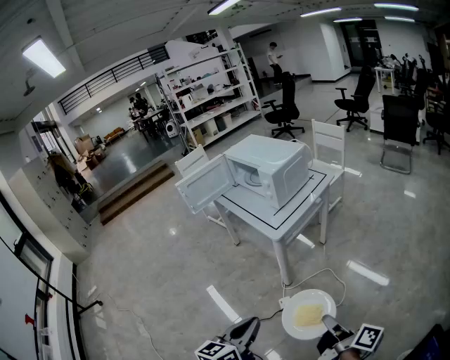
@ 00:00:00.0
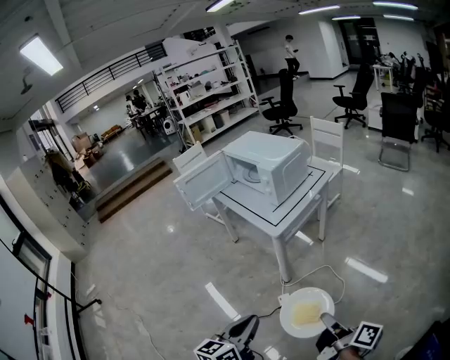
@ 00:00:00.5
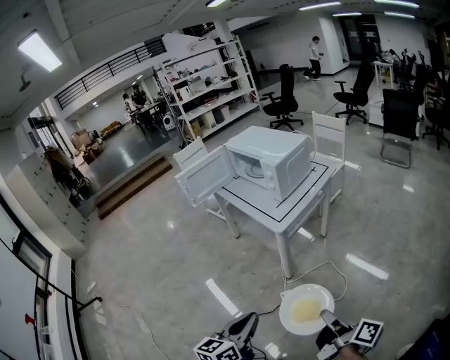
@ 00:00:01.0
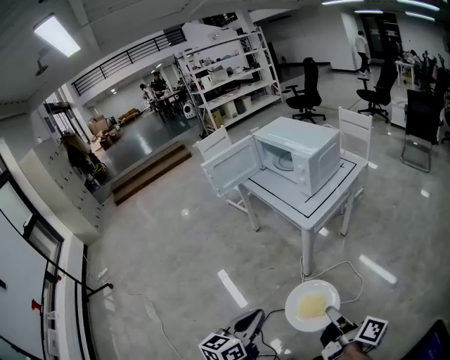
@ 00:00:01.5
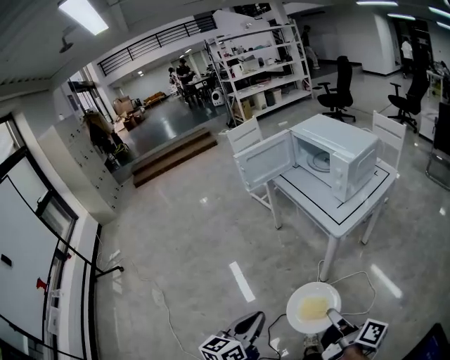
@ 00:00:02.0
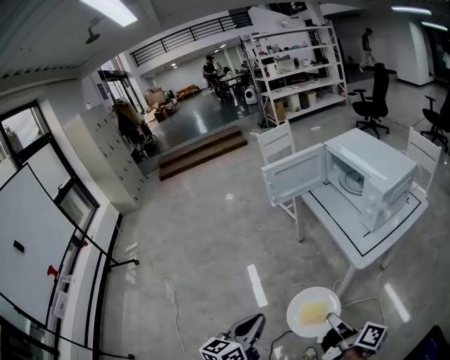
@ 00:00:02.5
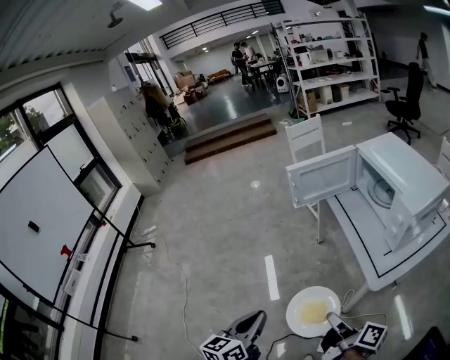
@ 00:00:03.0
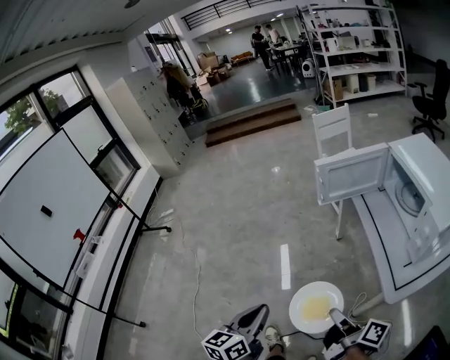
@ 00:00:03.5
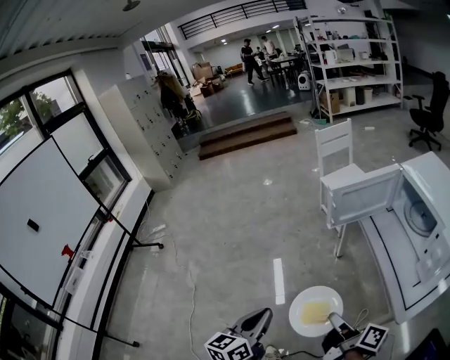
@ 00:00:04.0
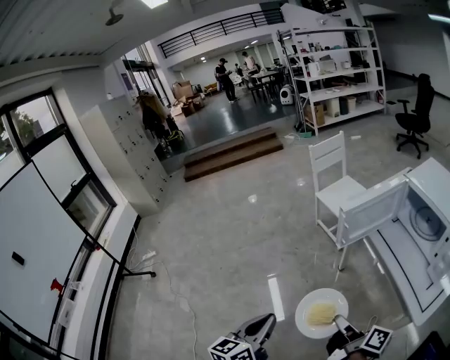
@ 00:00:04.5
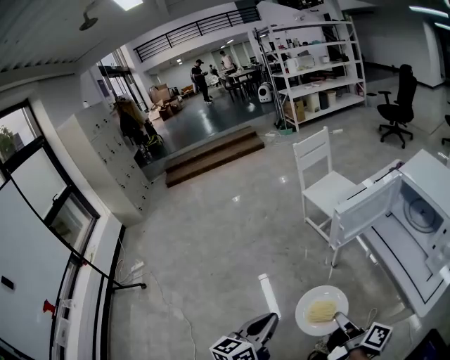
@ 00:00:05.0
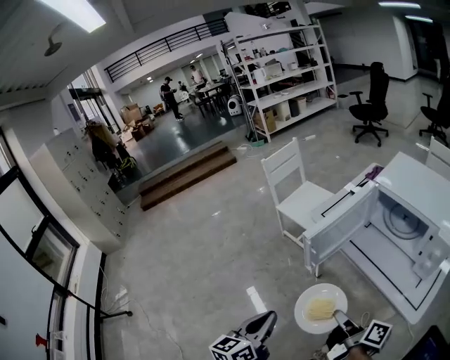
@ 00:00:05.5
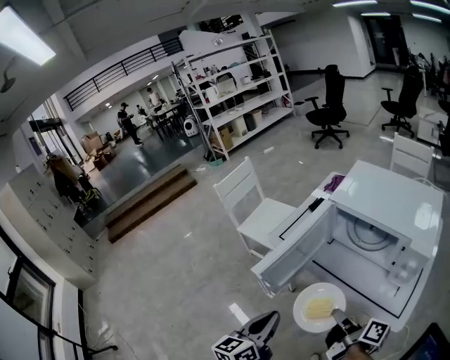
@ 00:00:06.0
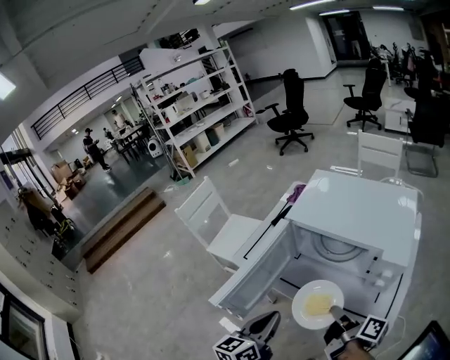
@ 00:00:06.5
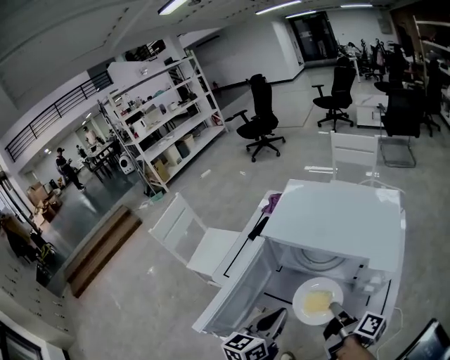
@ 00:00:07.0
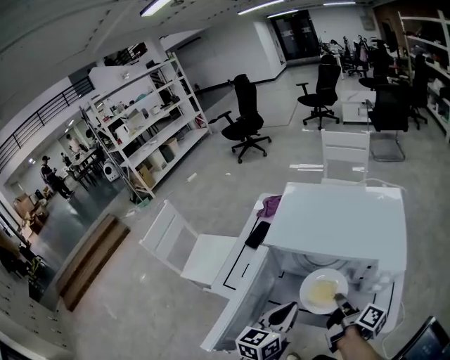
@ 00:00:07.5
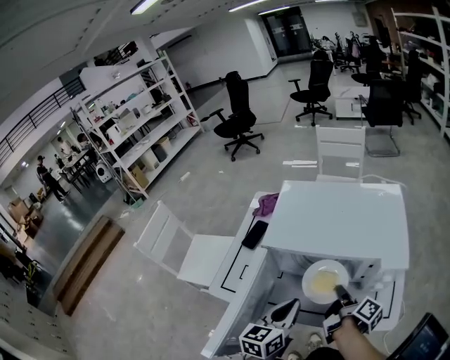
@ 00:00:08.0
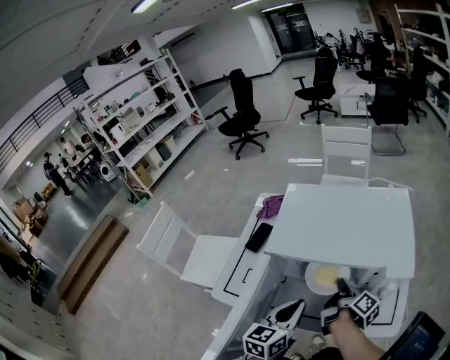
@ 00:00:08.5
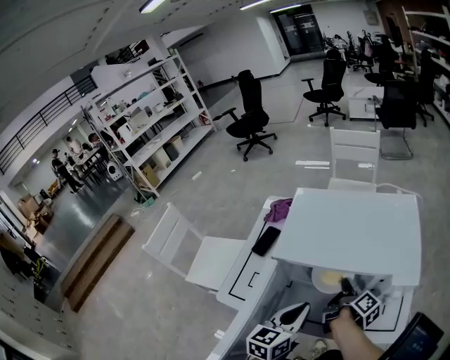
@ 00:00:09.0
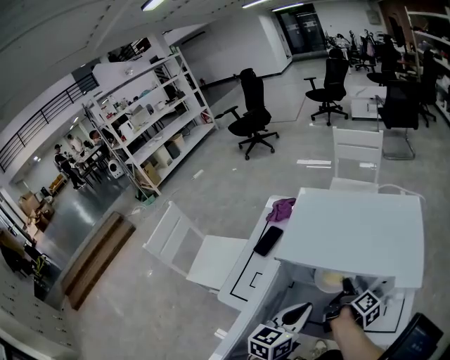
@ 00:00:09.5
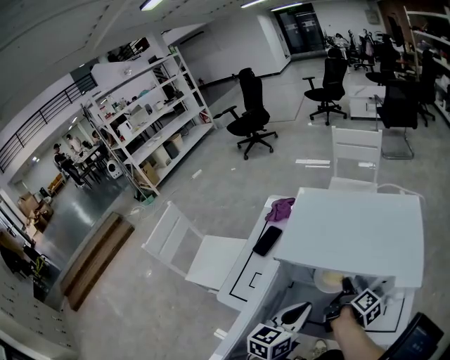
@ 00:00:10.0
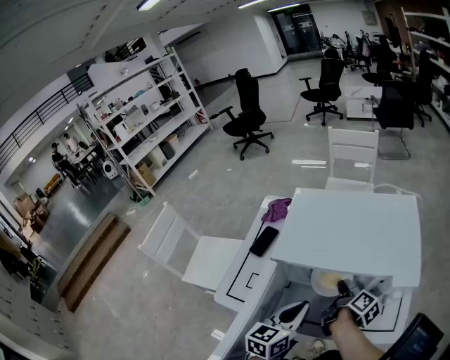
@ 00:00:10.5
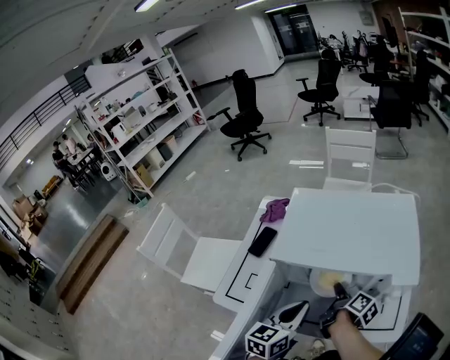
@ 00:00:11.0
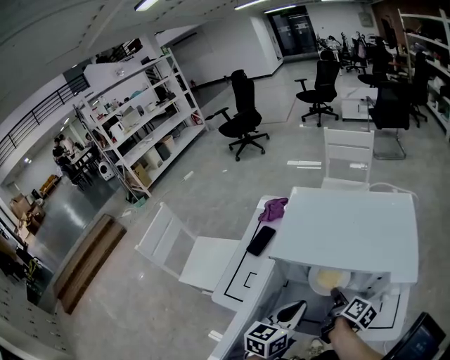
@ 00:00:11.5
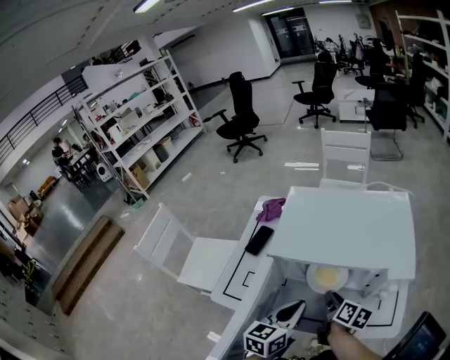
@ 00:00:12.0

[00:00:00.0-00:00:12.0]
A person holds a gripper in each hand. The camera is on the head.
00:00:00.0 to 00:00:02.0: The right gripper travels to the left and forward by about 20 cm; the left gripper is displaced to the left by about 20 cm.
00:00:02.0 to 00:00:04.0: The left gripper changes place by approximately 35 cm, and turns by approximately 20 degrees. The right gripper changes place by approximately 40 cm, and changes its angle by about 20 degrees.
00:00:04.0 to 00:00:06.0: The right gripper shifts by some 25 cm, and turns by some 40 degrees; the left gripper changes place by about 35 cm, and swivels some 40 degrees.
00:00:06.0 to 00:00:08.0: The right gripper shifts by roughly 25 cm, and rotates roughly 40 degrees. Meanwhile the left gripper shifts by some 30 cm, and rotates approximately 30 degrees.
00:00:08.0 to 00:00:10.0: The right gripper heads forward, covering about 10 cm.
00:00:10.0 to 00:00:12.0: The right gripper heads backward, covering some 5 cm, and changes its angle by some 30 degrees.

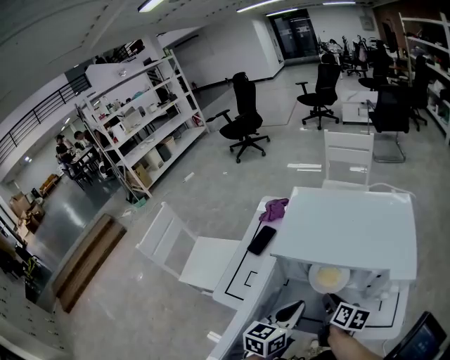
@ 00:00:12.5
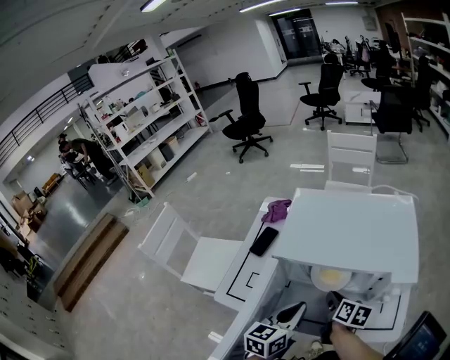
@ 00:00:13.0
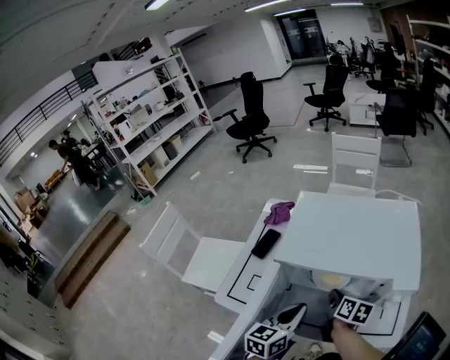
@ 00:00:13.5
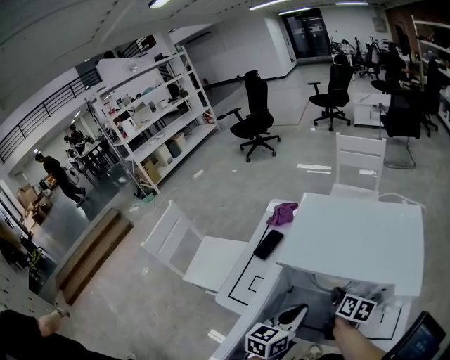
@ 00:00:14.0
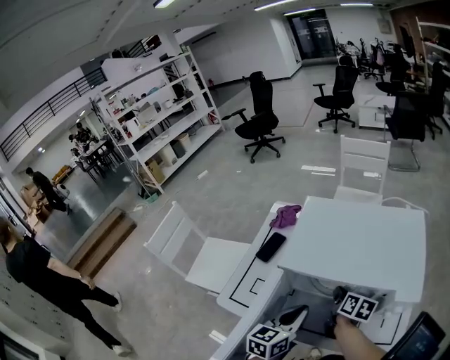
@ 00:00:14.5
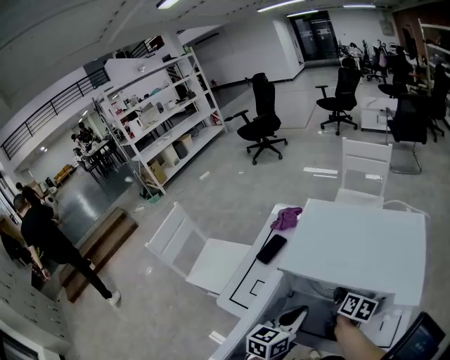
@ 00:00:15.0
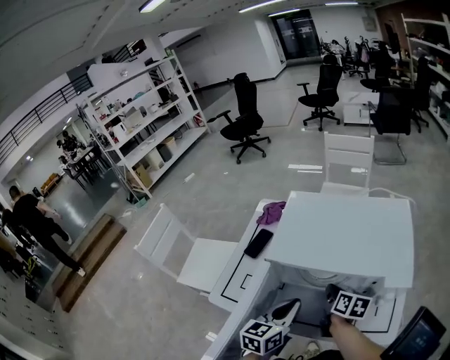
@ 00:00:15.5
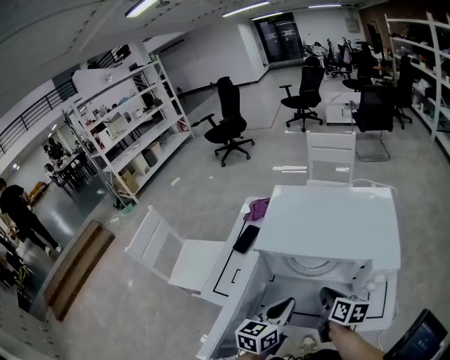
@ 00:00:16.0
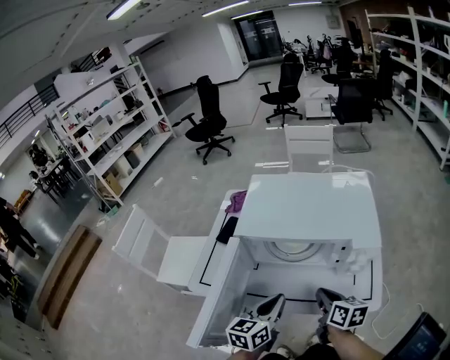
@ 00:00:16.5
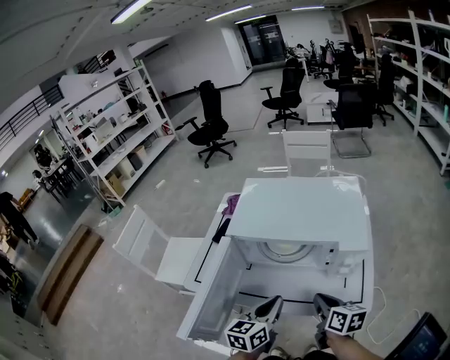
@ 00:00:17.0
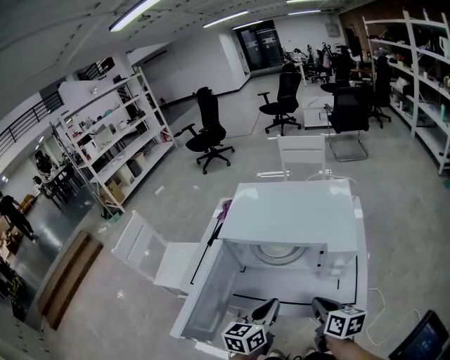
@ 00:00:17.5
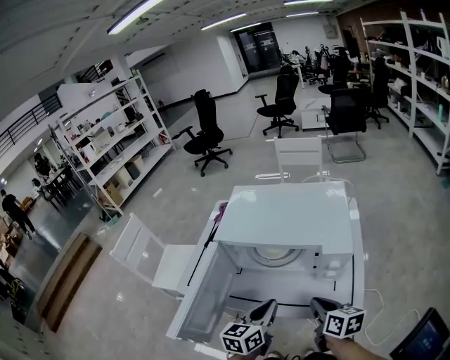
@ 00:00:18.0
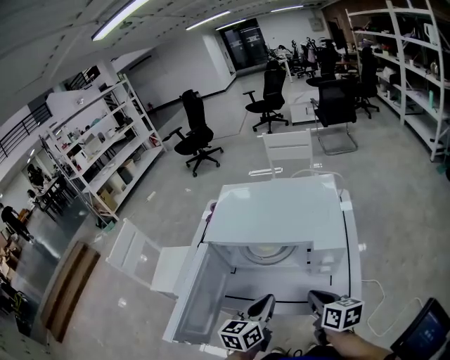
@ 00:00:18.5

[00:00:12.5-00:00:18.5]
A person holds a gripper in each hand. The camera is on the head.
00:00:12.5 to 00:00:14.5: The right gripper goes approximately 10 cm forward.
00:00:14.5 to 00:00:16.5: The left gripper shifts roughly 5 cm backward, while the right gripper goes about 15 cm backward.
00:00:16.5 to 00:00:18.5: Both grippers travel together to the right, some 5 cm.

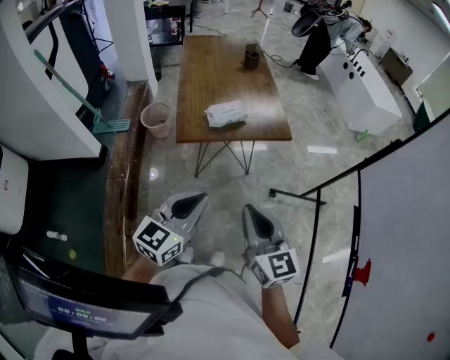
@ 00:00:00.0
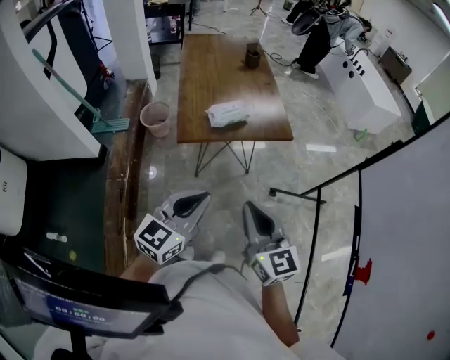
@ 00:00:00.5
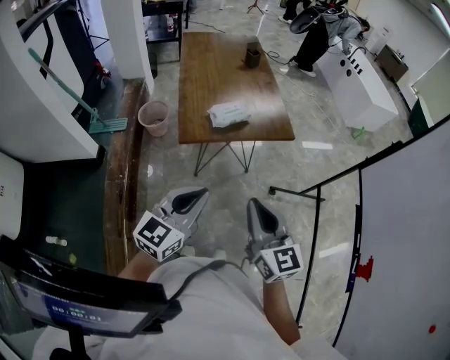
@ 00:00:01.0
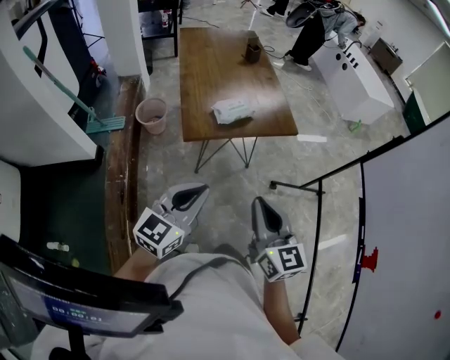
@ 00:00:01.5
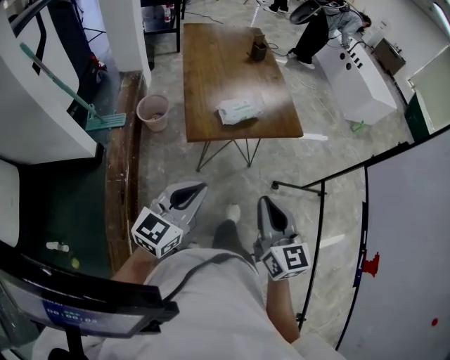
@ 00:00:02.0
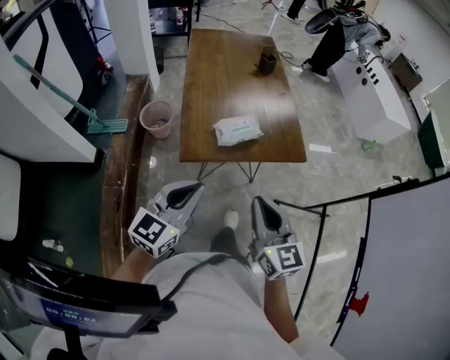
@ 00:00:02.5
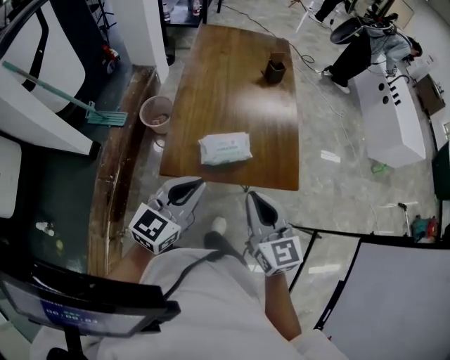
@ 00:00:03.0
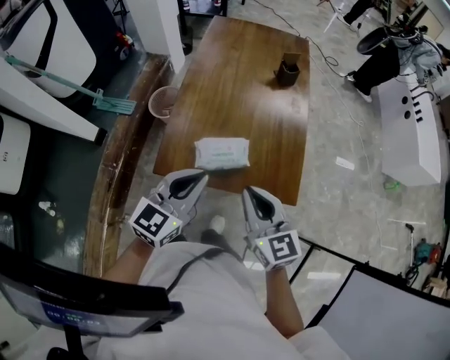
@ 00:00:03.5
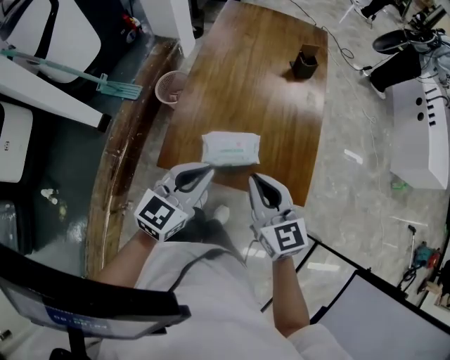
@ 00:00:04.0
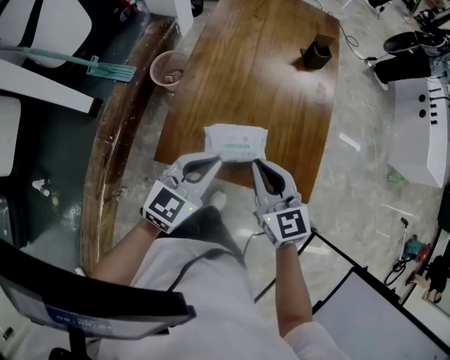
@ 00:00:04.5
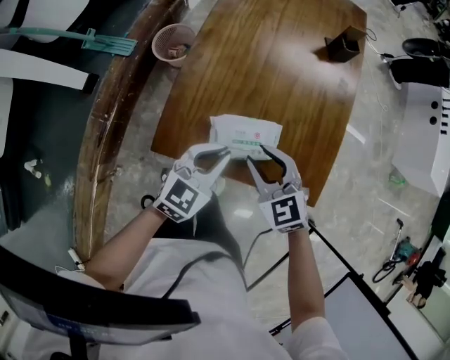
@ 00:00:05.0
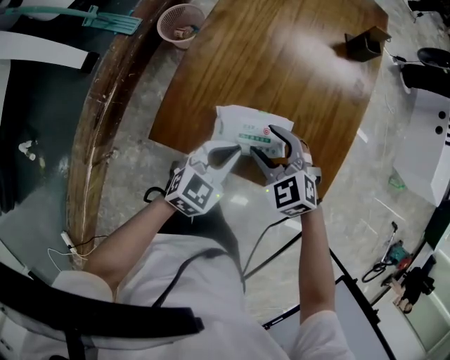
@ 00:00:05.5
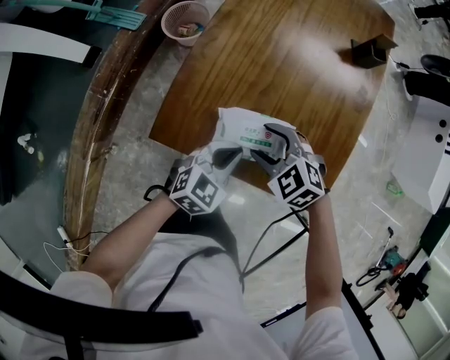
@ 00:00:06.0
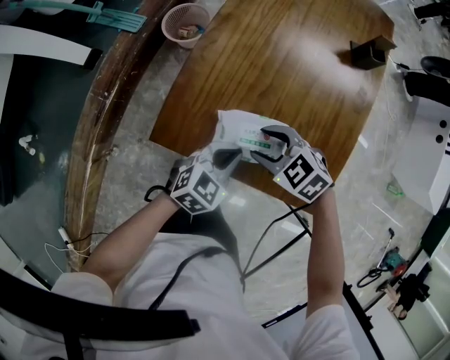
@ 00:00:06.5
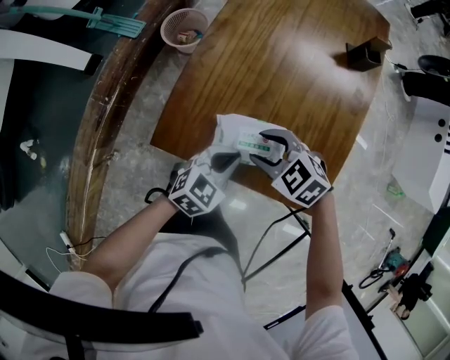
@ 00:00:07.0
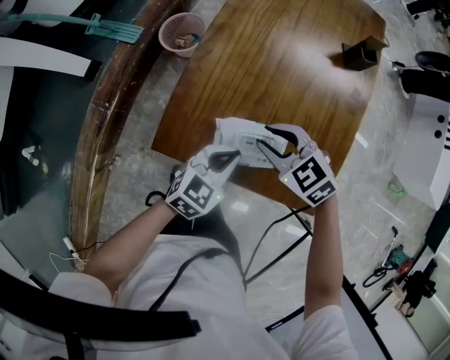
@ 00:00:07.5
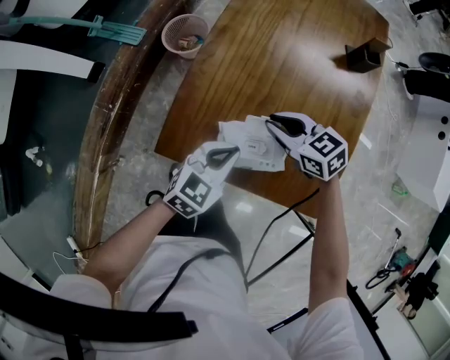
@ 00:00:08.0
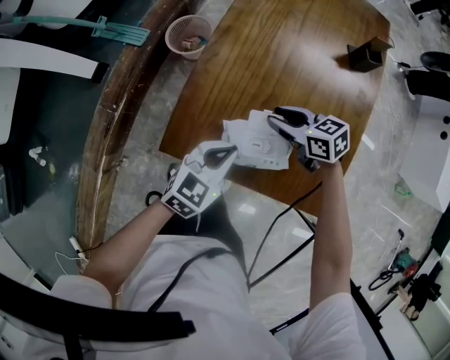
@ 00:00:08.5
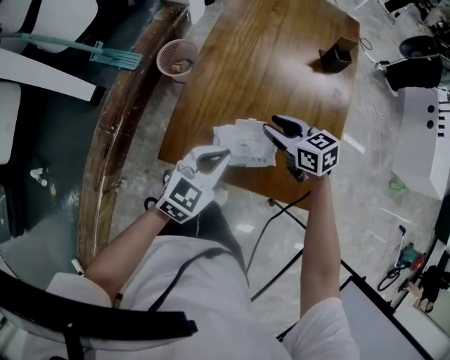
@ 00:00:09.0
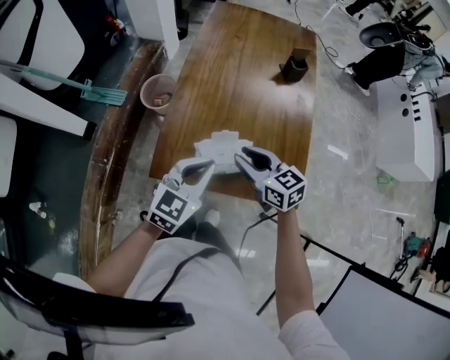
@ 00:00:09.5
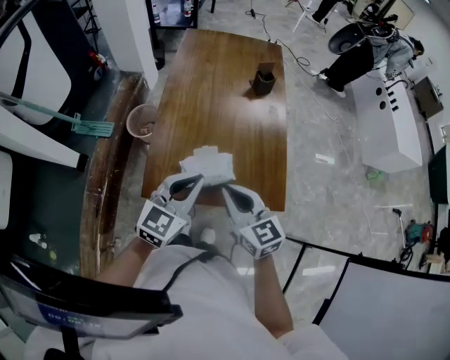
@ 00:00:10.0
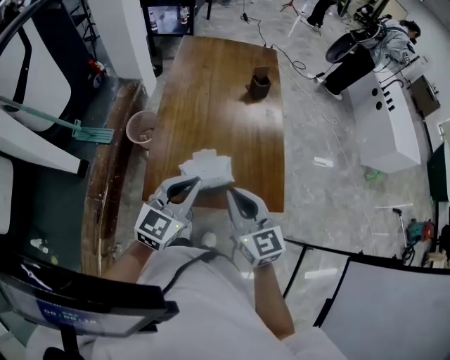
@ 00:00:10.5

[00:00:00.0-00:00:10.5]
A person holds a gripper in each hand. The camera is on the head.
00:00:00.0 to 00:00:02.0: The left gripper moves to the left, approximately 10 cm. The right gripper goes roughly 5 cm to the left.
00:00:02.0 to 00:00:04.0: The left gripper shifts by some 35 cm, and changes its angle by some 20 degrees. Meanwhile the right gripper ends up approximately 40 cm from where it was, and changes its angle by about 30 degrees.
00:00:04.0 to 00:00:06.5: The two grippers go roughly 20 cm downward. The right gripper points its fingers approximately 40 degrees further downward, and opens.
00:00:06.5 to 00:00:08.5: The left gripper shifts about 5 cm upward. Meanwhile the right gripper ends up approximately 10 cm from where it was, and turns by some 40 degrees.
00:00:08.5 to 00:00:10.5: Both grippers move upward, approximately 20 cm. The right gripper swivels roughly 60 degrees, and closes; the left gripper swivels about 20 degrees.
